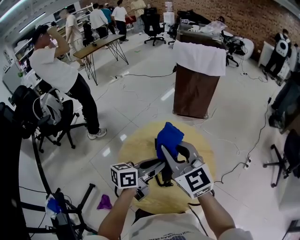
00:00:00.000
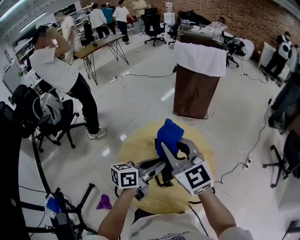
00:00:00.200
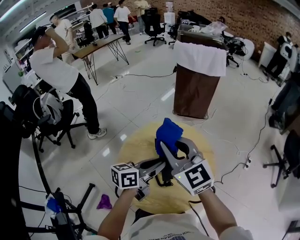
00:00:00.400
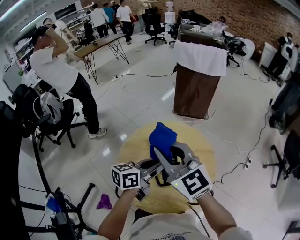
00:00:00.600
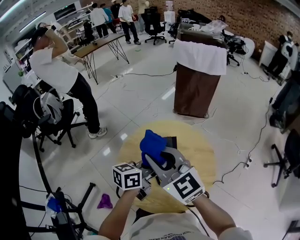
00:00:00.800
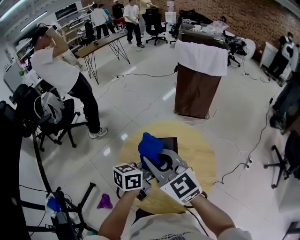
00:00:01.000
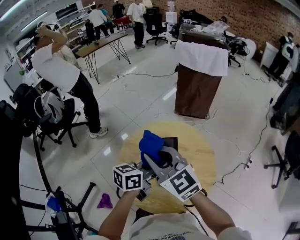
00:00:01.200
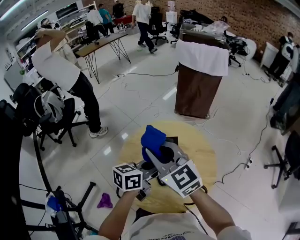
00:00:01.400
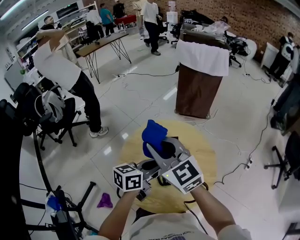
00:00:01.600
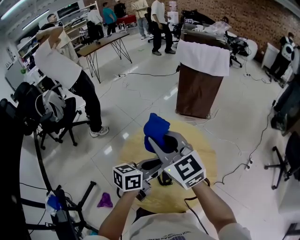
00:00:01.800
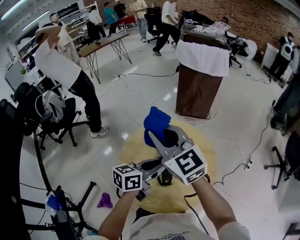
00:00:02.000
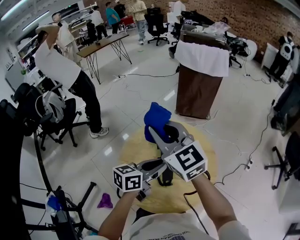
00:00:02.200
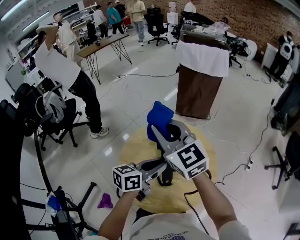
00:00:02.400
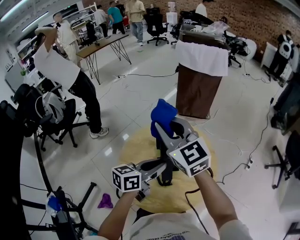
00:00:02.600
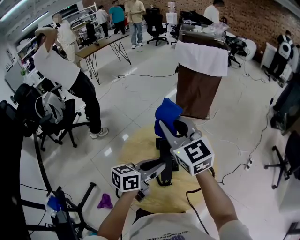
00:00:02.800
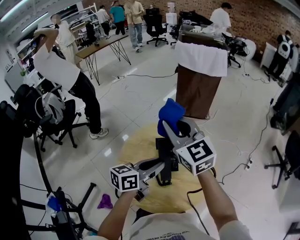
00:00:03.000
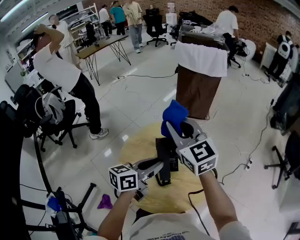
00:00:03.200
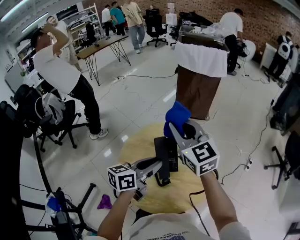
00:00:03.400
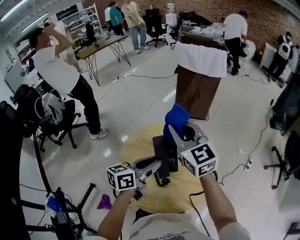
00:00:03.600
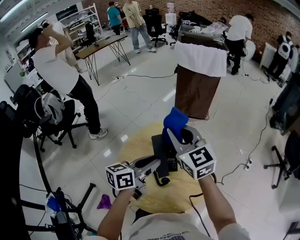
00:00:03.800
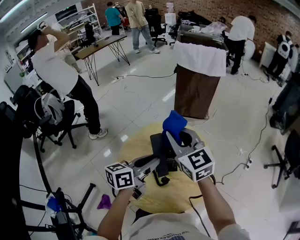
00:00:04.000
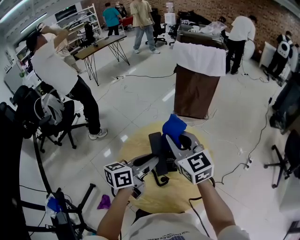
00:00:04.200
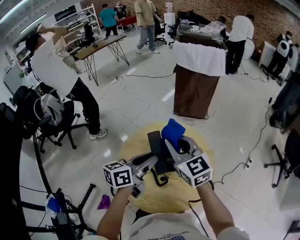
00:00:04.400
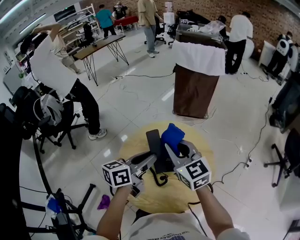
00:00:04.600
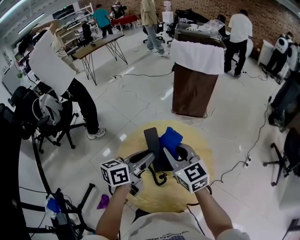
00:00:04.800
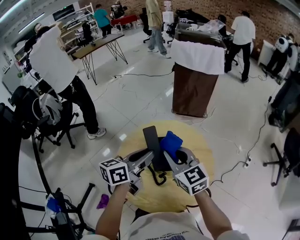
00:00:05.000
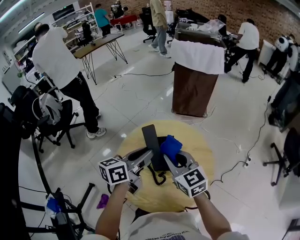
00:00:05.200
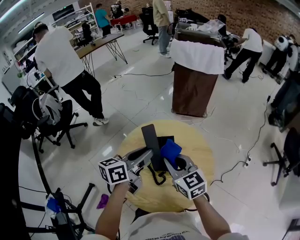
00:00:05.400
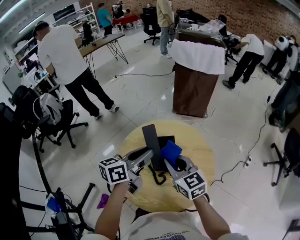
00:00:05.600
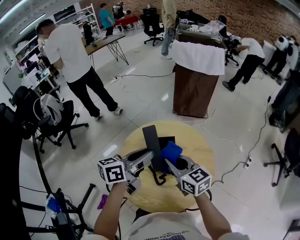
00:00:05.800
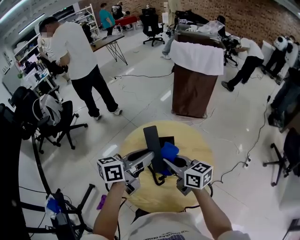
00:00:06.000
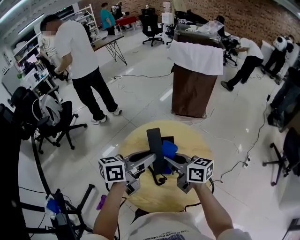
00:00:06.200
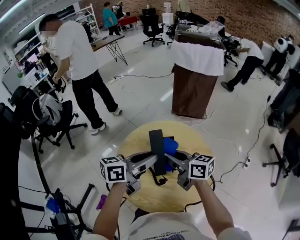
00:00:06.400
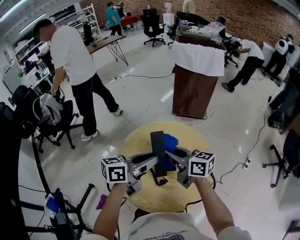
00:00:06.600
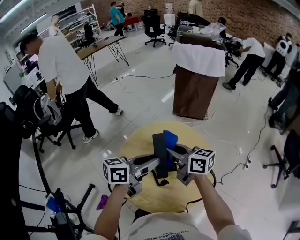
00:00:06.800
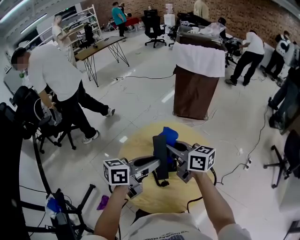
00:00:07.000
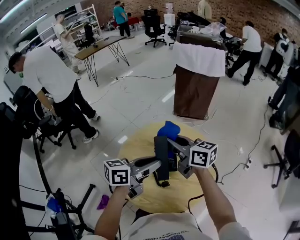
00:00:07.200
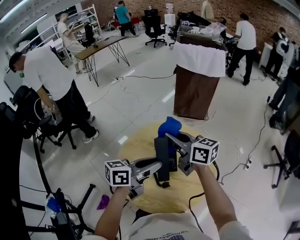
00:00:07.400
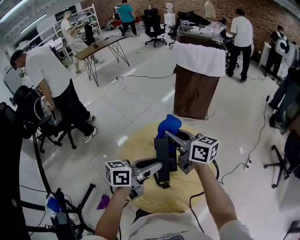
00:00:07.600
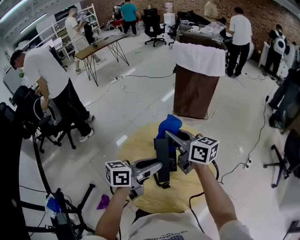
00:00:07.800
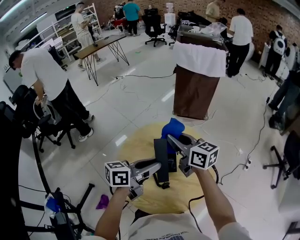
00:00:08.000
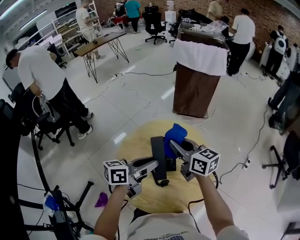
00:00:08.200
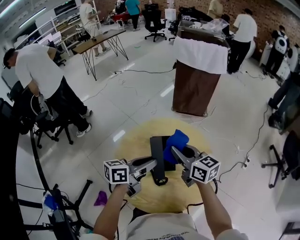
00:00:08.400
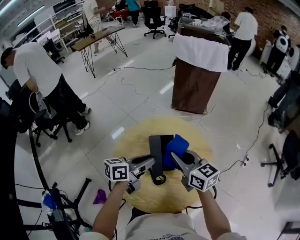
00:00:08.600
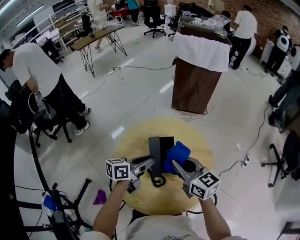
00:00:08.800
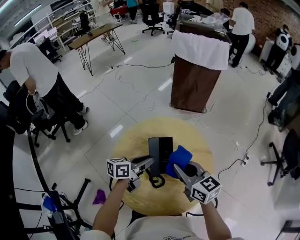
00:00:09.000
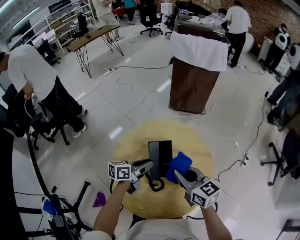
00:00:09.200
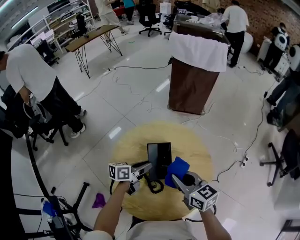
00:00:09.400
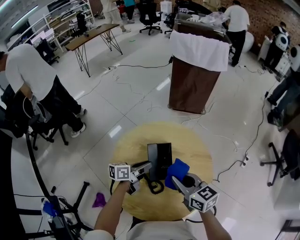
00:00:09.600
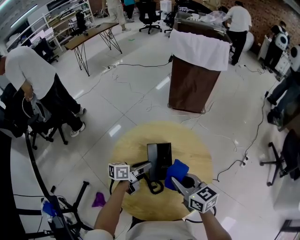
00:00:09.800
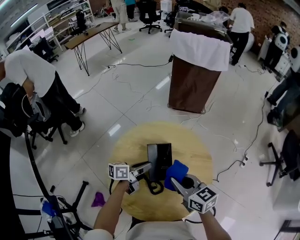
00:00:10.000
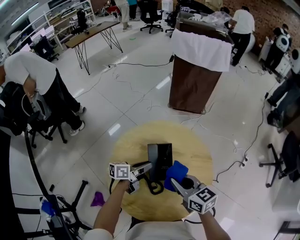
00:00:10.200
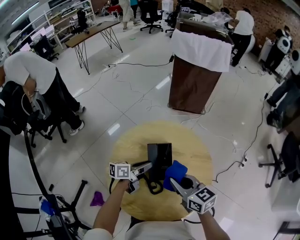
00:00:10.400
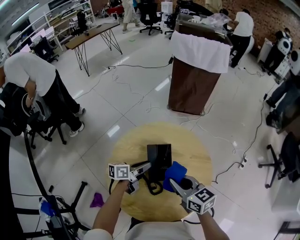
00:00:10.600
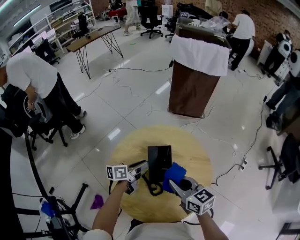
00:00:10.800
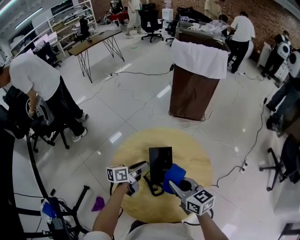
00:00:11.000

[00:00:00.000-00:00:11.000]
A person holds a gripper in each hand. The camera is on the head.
00:00:00.000 to 00:00:01.600: The right gripper goes about 5 cm to the left.
00:00:01.600 to 00:00:03.200: The right gripper shifts about 10 cm forward and to the right.
00:00:03.200 to 00:00:04.800: The right gripper shifts some 10 cm downward.
00:00:04.800 to 00:00:06.200: The right gripper travels downward by approximately 5 cm, and turns by approximately 40 degrees.
00:00:06.200 to 00:00:07.800: The right gripper goes about 10 cm forward and upward.
00:00:07.800 to 00:00:09.400: The right gripper shifts approximately 15 cm downward, backward and to the right, while the left gripper is displaced downward by roughly 20 cm.
00:00:09.400 to 00:00:11.000: The grippers stay close to where they were, moving slightly.

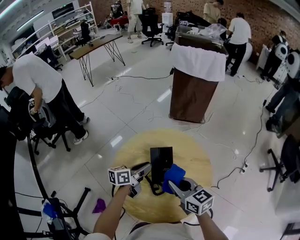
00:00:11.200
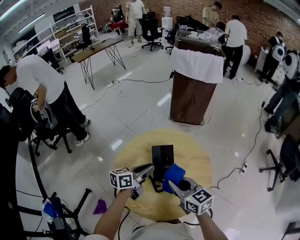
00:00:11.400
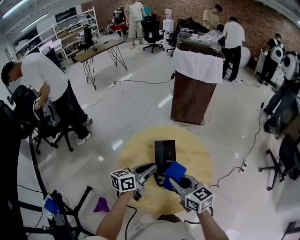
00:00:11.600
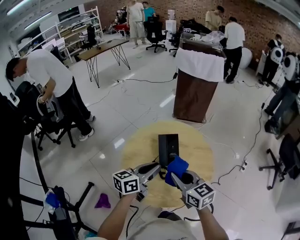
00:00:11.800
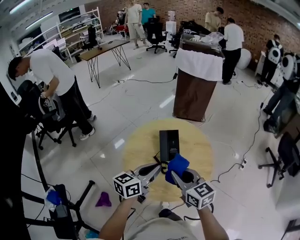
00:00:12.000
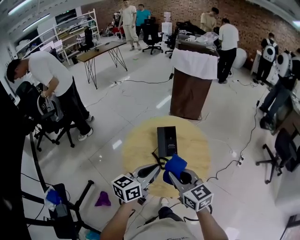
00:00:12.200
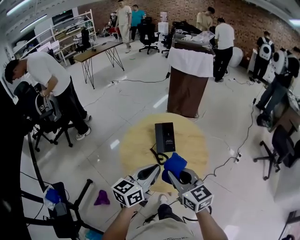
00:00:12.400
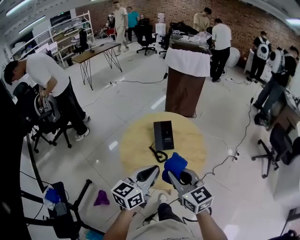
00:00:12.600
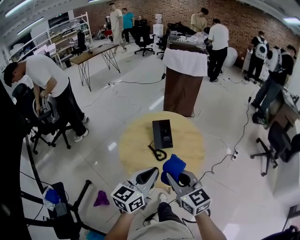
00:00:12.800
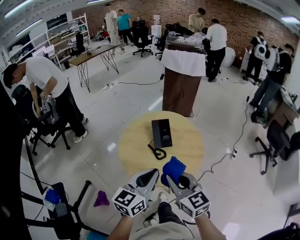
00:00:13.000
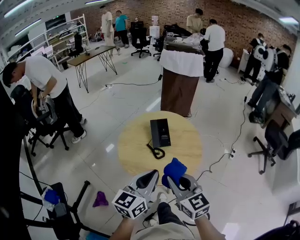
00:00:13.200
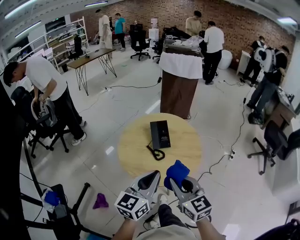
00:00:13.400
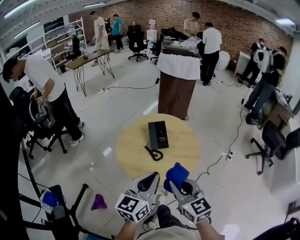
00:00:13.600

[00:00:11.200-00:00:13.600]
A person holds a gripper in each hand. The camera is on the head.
00:00:11.200 to 00:00:12.400: The left gripper heads backward and upward, covering approximately 30 cm, and swivels about 30 degrees, while the right gripper is displaced backward and upward by about 20 cm.
00:00:12.400 to 00:00:13.600: Both grippers travel together backward, about 10 cm.

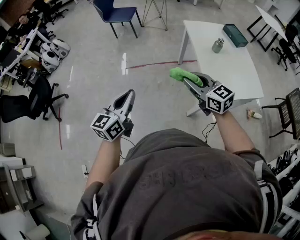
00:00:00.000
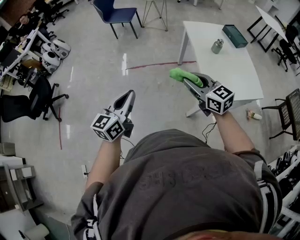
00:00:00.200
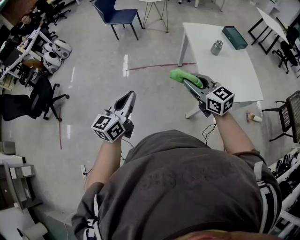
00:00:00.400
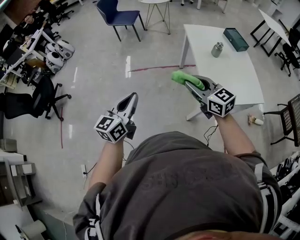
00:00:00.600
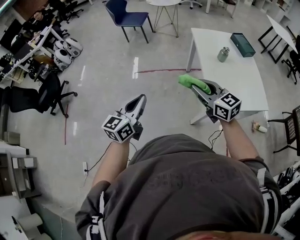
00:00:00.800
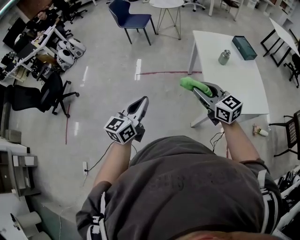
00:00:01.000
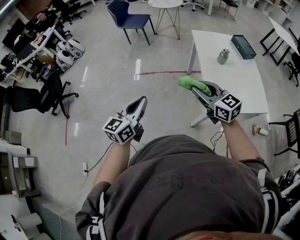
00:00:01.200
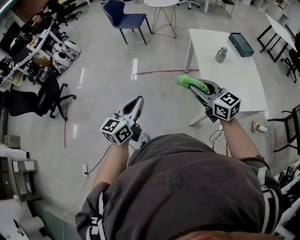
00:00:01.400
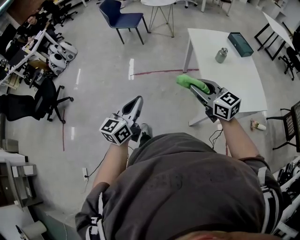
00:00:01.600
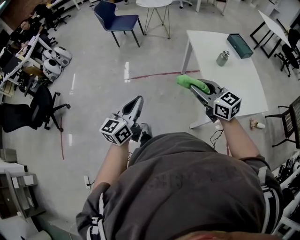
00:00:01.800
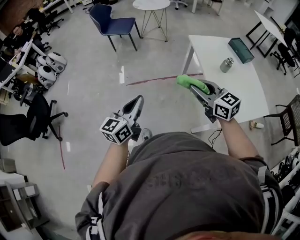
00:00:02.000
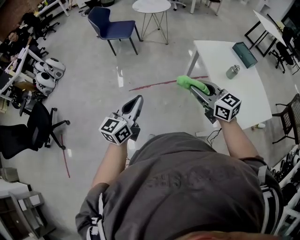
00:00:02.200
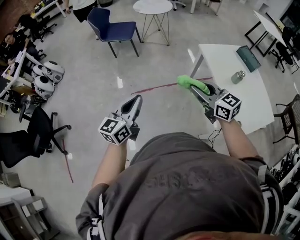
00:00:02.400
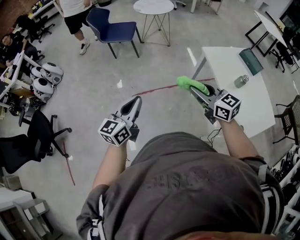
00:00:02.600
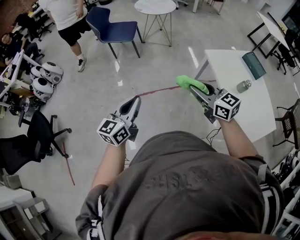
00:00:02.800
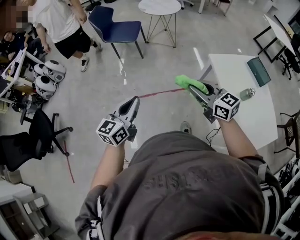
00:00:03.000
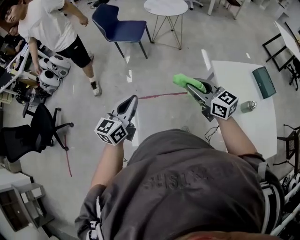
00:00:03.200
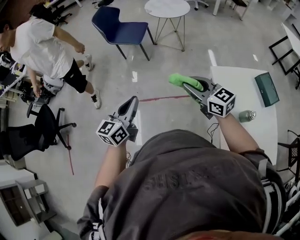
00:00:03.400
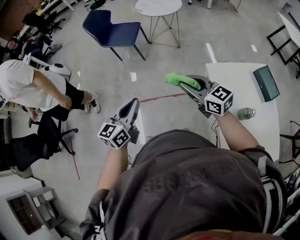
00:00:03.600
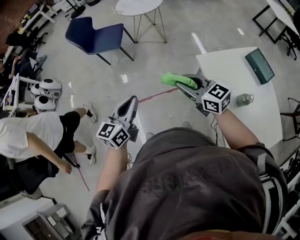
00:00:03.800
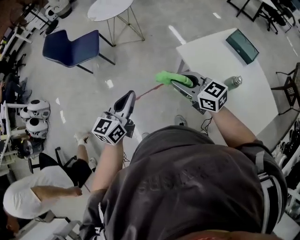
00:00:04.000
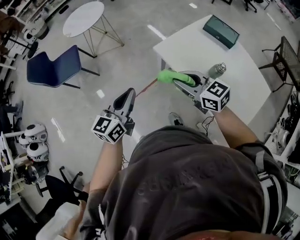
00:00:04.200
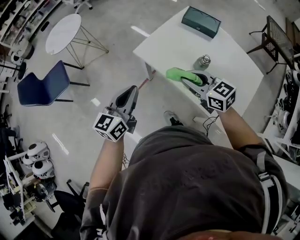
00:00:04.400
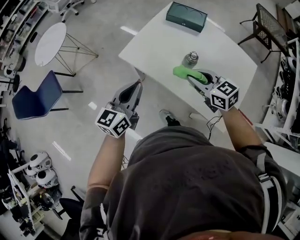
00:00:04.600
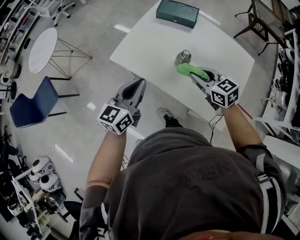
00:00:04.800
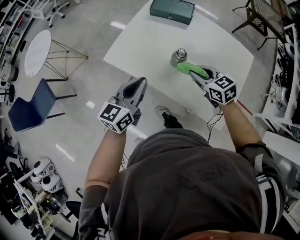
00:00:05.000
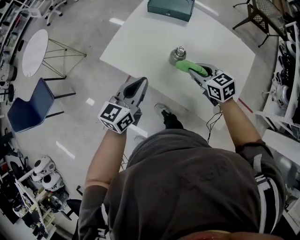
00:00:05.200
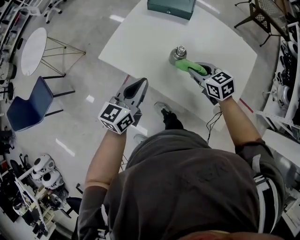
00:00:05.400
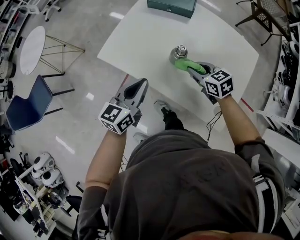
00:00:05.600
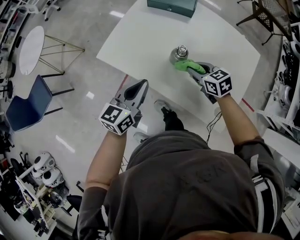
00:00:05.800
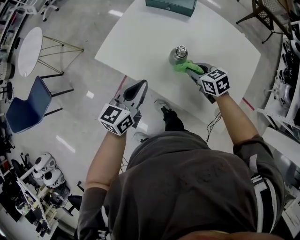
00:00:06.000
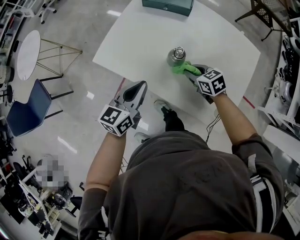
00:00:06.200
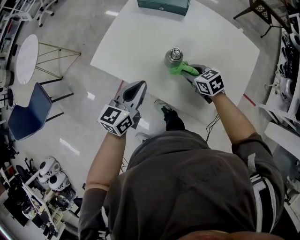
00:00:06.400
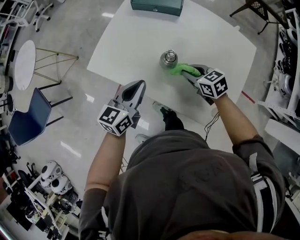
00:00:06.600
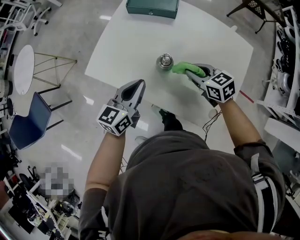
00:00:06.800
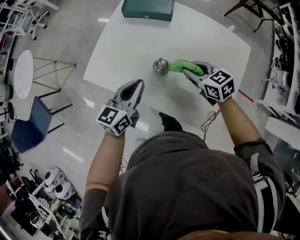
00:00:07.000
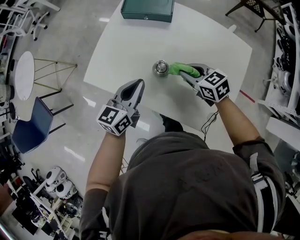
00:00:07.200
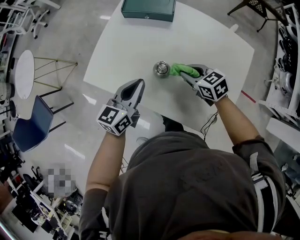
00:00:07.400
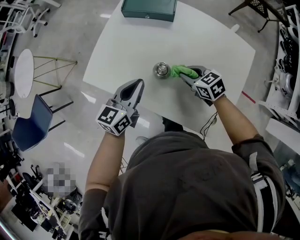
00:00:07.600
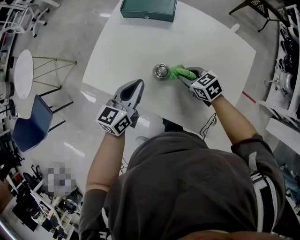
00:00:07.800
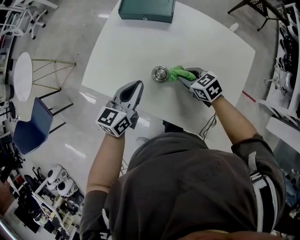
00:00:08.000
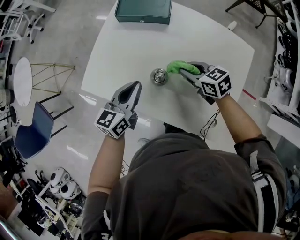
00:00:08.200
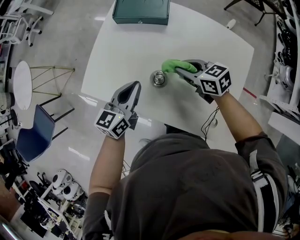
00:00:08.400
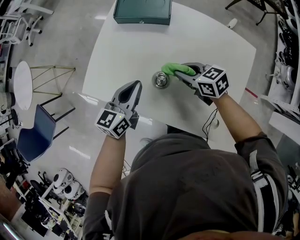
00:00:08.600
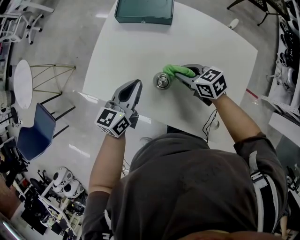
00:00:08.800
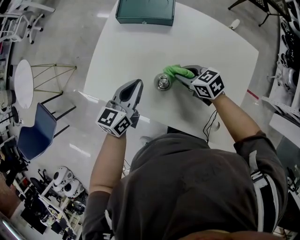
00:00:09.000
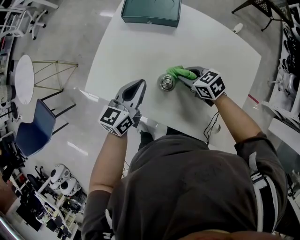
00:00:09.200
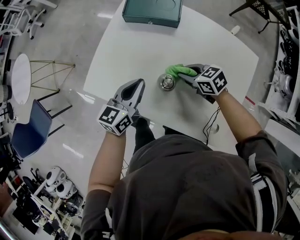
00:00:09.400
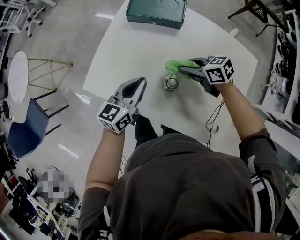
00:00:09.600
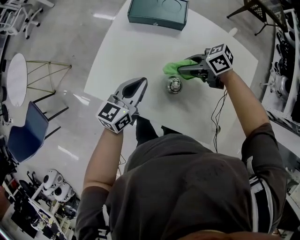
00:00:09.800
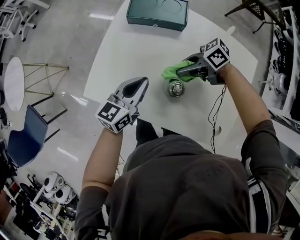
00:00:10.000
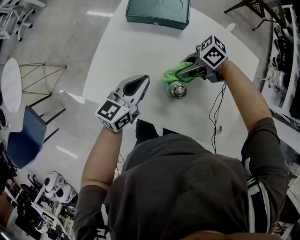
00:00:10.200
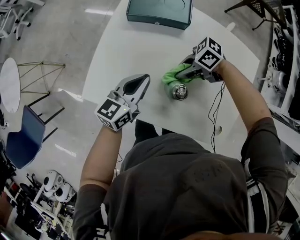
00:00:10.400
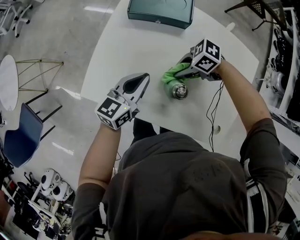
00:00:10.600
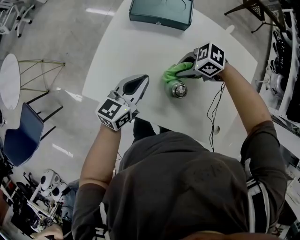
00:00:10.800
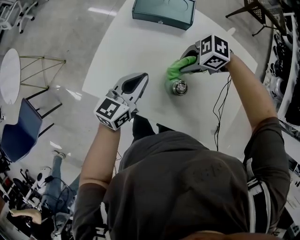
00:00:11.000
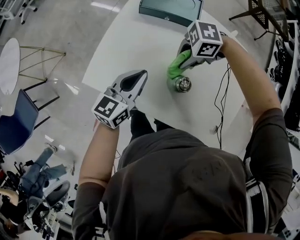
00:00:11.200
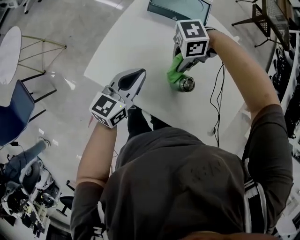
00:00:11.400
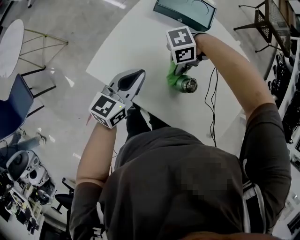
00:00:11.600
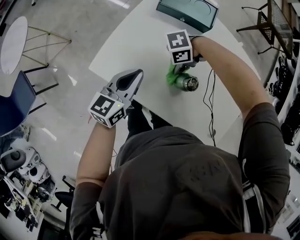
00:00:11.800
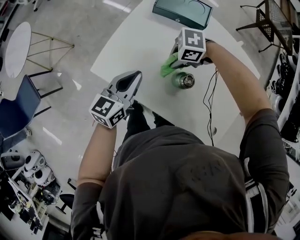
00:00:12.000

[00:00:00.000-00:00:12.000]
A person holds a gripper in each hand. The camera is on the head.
00:00:00.000 to 00:00:01.600: The two grippers go roughly 5 cm to the right.
00:00:01.600 to 00:00:03.000: Both grippers are carried forward, approximately 40 cm.
00:00:03.000 to 00:00:04.400: The right gripper changes place by roughly 30 cm, and swivels roughly 30 degrees. The left gripper ends up about 40 cm from where it was, and changes its angle by roughly 40 degrees.
00:00:04.400 to 00:00:06.000: The two grippers go approximately 25 cm to the right, downward and forward. The right gripper changes its angle by approximately 30 degrees.
00:00:06.000 to 00:00:07.600: The left gripper travels forward and to the right by roughly 10 cm, while the right gripper moves about 5 cm upward and comes back.
00:00:07.600 to 00:00:09.000: The left gripper moves forward, about 5 cm.
00:00:09.000 to 00:00:10.400: The right gripper changes place by roughly 5 cm, and changes its angle by roughly 40 degrees; the left gripper shifts by roughly 5 cm.
00:00:10.400 to 00:00:12.000: The right gripper changes place by about 10 cm, and changes its angle by roughly 40 degrees, while the left gripper changes place by about 10 cm.
